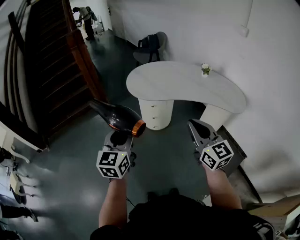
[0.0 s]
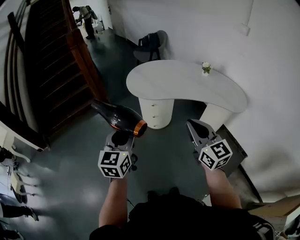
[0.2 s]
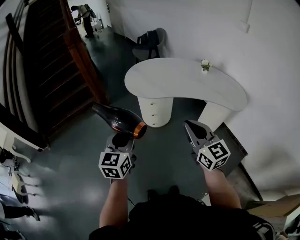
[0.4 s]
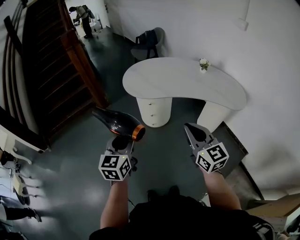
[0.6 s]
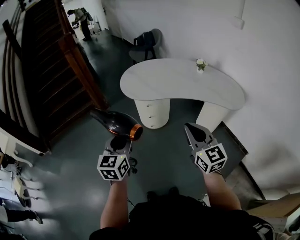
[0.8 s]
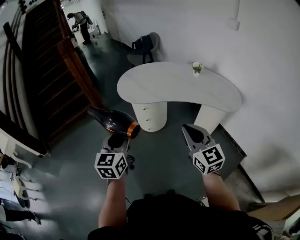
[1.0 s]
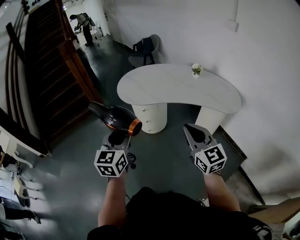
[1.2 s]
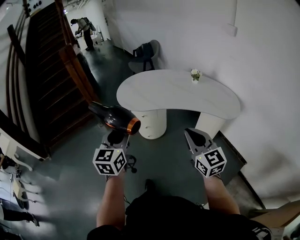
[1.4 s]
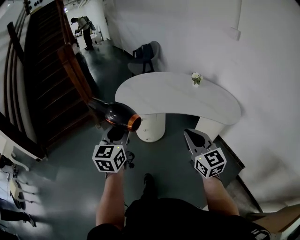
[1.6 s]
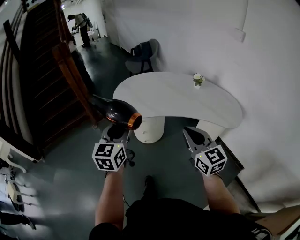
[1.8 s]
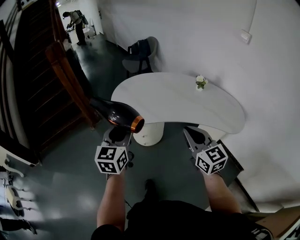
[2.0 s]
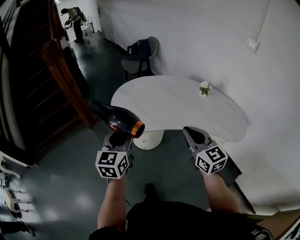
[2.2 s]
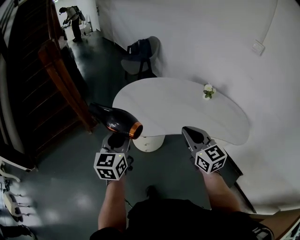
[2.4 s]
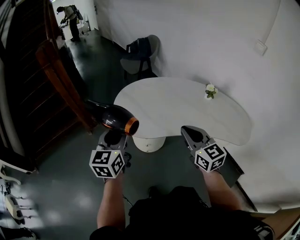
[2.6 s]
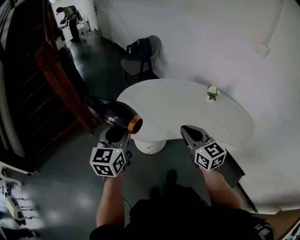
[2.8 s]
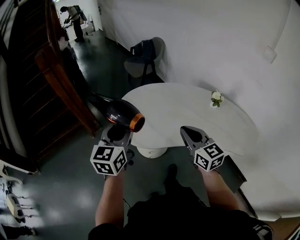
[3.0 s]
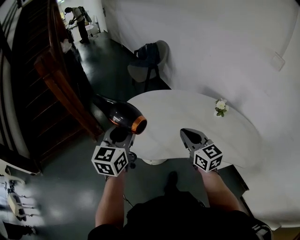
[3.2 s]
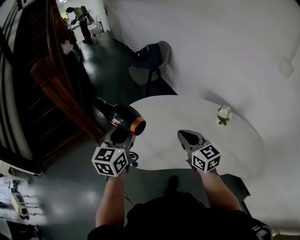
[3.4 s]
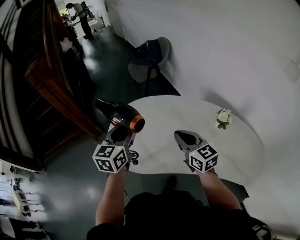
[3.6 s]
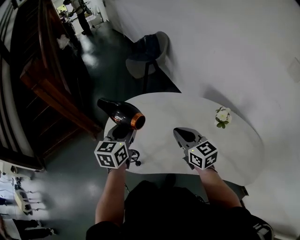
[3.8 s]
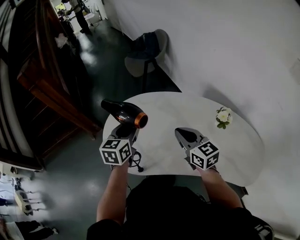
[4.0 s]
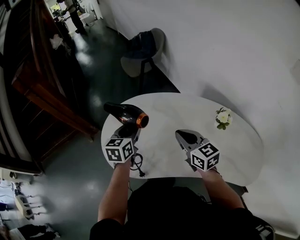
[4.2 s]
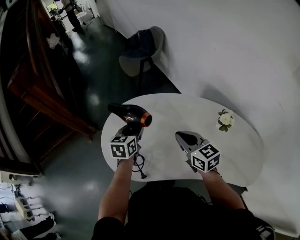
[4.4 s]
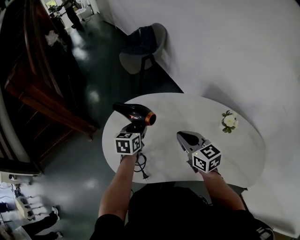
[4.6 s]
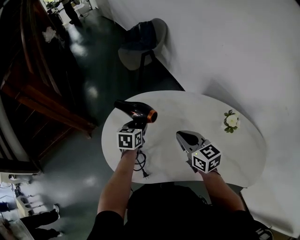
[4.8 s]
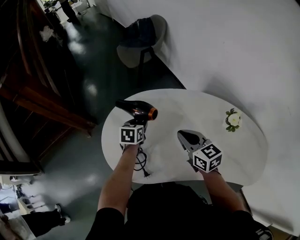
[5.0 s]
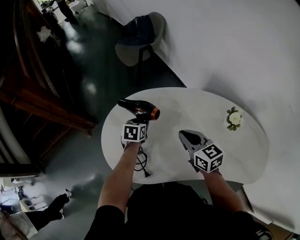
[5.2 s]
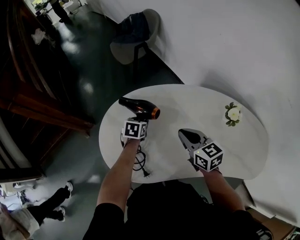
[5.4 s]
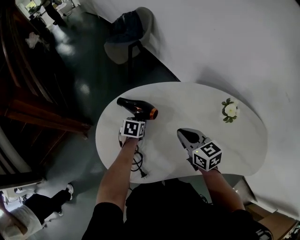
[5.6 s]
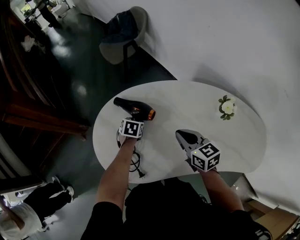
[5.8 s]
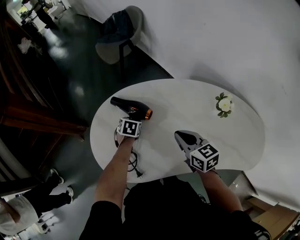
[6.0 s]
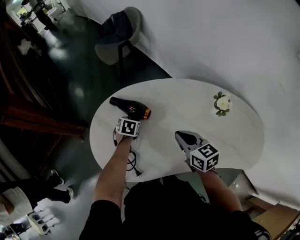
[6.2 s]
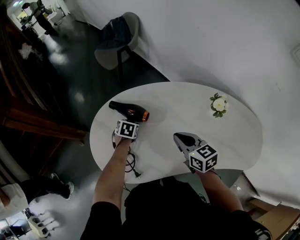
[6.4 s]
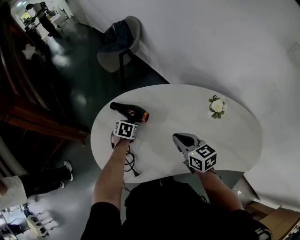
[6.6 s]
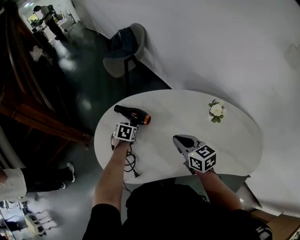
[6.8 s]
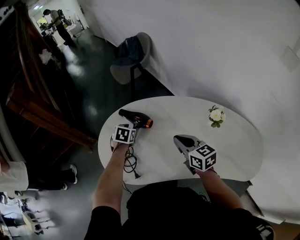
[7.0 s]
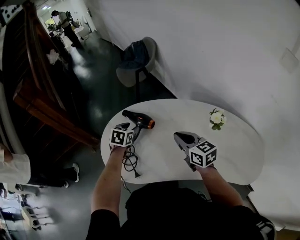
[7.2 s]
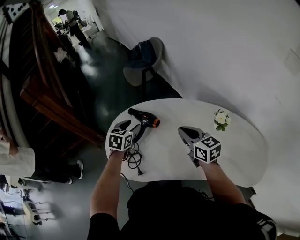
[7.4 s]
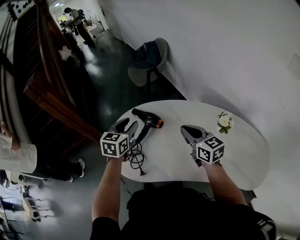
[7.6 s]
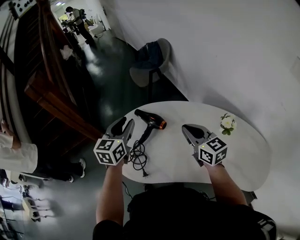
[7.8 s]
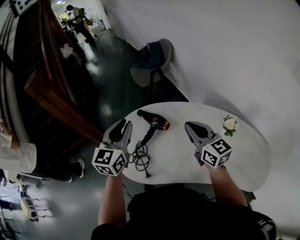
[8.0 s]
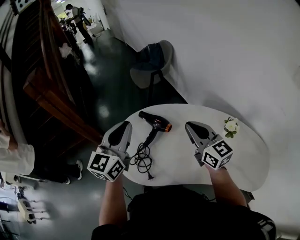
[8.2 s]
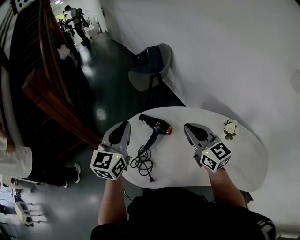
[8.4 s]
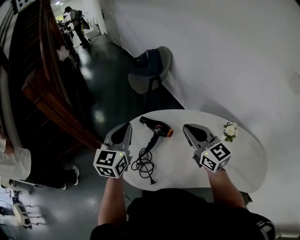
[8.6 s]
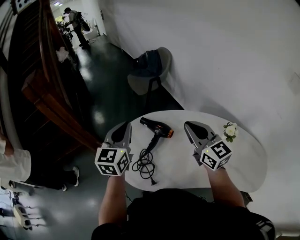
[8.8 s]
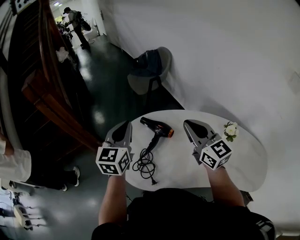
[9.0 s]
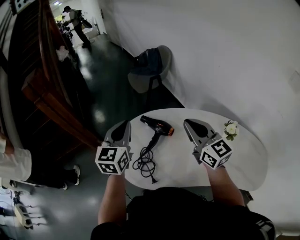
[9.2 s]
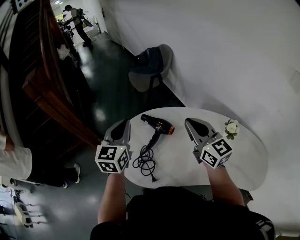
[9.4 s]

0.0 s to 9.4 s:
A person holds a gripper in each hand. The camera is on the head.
0.0 to 1.6 s: The right gripper is displaced to the right by some 10 cm, while the left gripper is displaced to the right and forward by some 15 cm.
1.6 to 3.2 s: Both grippers move forward, approximately 40 cm.
3.2 to 4.8 s: The right gripper shifts some 20 cm forward and downward. The left gripper travels downward, forward and to the right by roughly 40 cm, and angles its fingers downward, by some 30 degrees.
4.8 to 6.2 s: The left gripper is displaced downward by some 10 cm, and changes its angle by approximately 30 degrees. Meanwhile the right gripper shifts by some 5 cm.
6.2 to 7.8 s: The left gripper is displaced upward by some 35 cm, and tips its fingers upward by roughly 50 degrees; the right gripper travels upward by some 15 cm, and turns by about 20 degrees.
7.8 to 9.4 s: The left gripper travels to the left by roughly 5 cm, and closes, while the right gripper shifts approximately 10 cm upward and to the left.

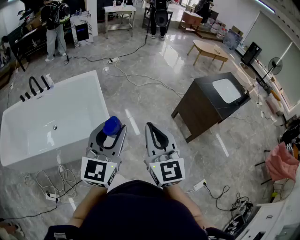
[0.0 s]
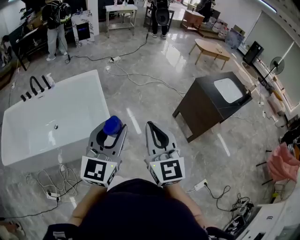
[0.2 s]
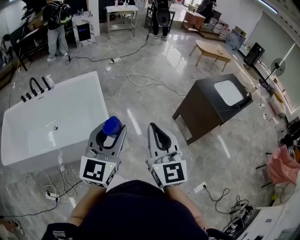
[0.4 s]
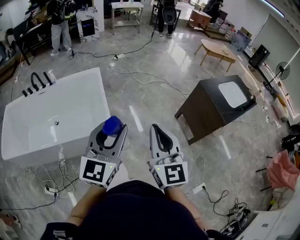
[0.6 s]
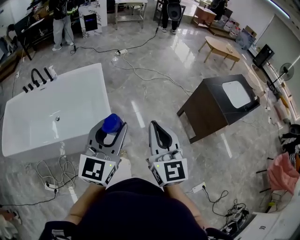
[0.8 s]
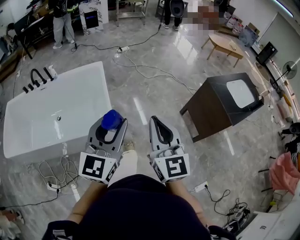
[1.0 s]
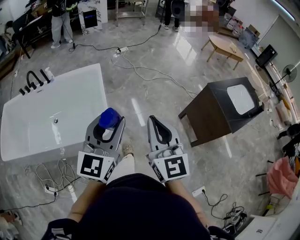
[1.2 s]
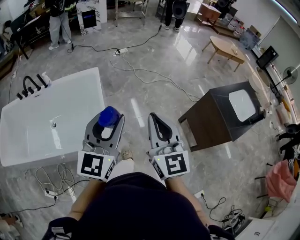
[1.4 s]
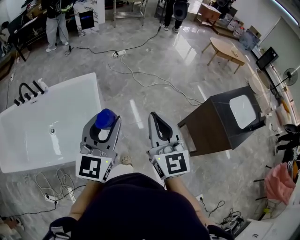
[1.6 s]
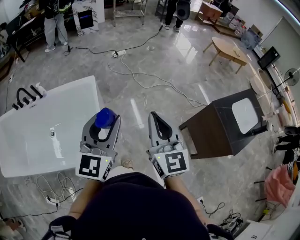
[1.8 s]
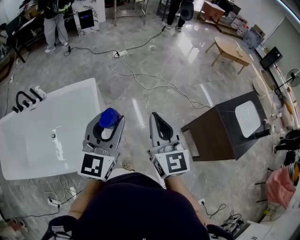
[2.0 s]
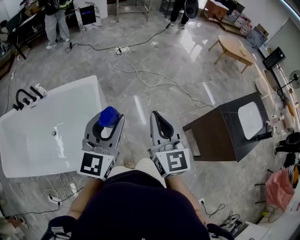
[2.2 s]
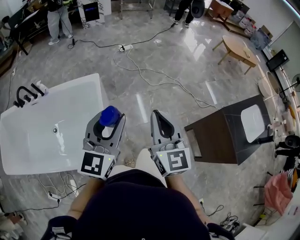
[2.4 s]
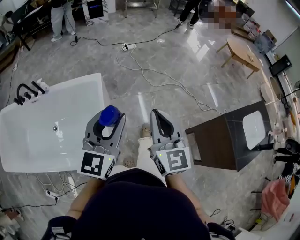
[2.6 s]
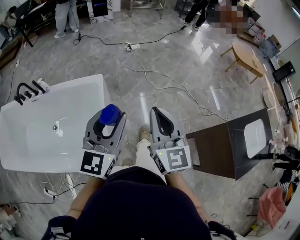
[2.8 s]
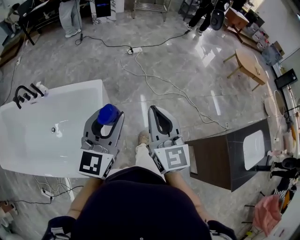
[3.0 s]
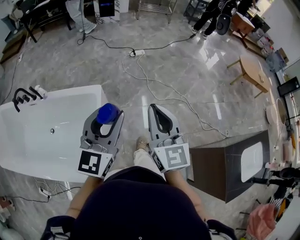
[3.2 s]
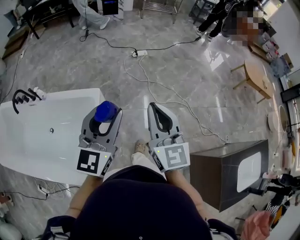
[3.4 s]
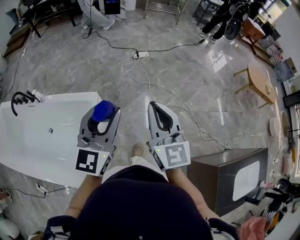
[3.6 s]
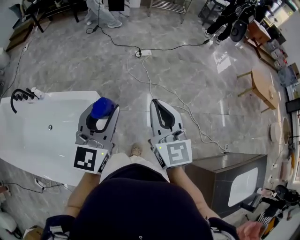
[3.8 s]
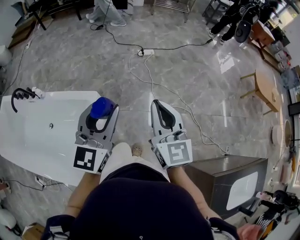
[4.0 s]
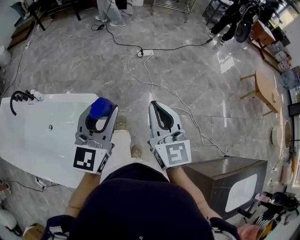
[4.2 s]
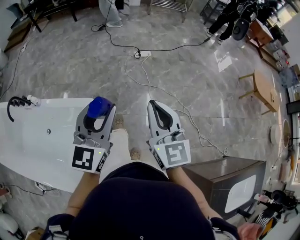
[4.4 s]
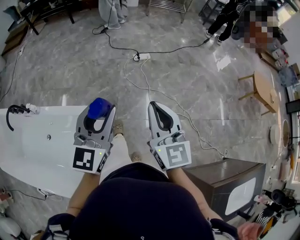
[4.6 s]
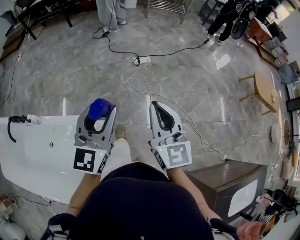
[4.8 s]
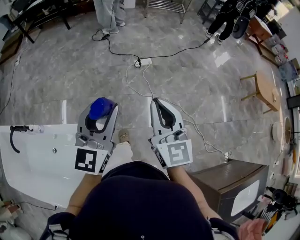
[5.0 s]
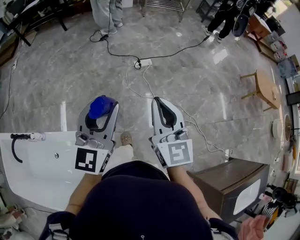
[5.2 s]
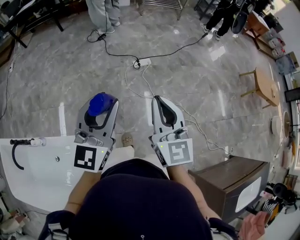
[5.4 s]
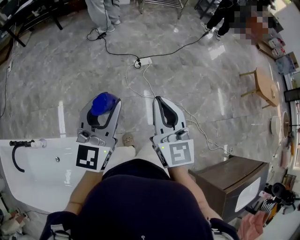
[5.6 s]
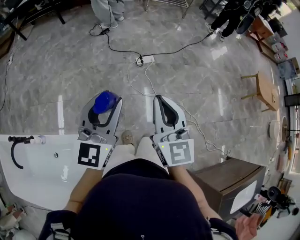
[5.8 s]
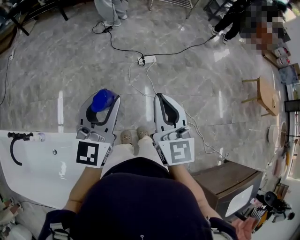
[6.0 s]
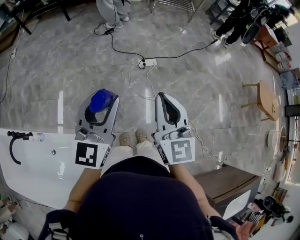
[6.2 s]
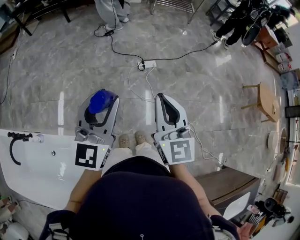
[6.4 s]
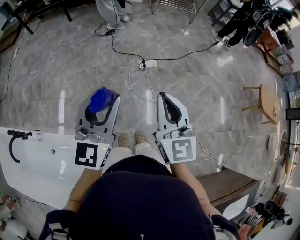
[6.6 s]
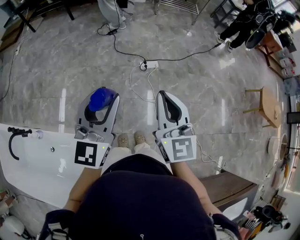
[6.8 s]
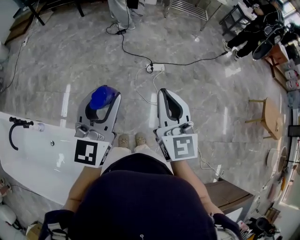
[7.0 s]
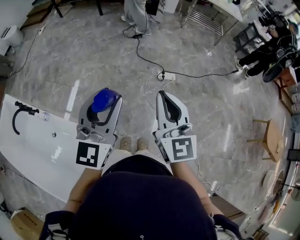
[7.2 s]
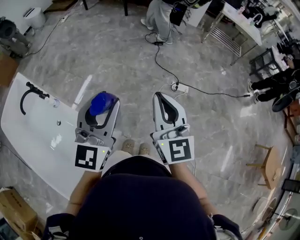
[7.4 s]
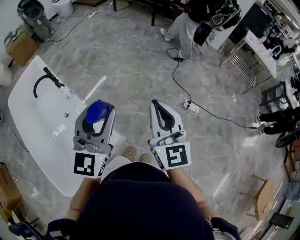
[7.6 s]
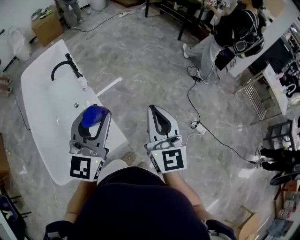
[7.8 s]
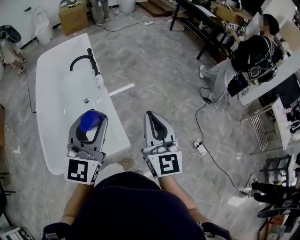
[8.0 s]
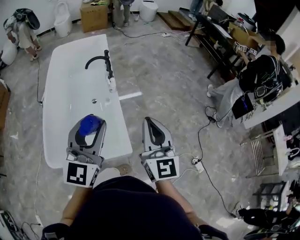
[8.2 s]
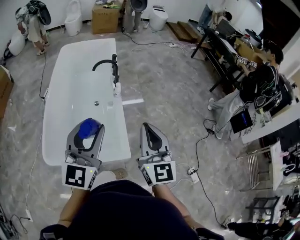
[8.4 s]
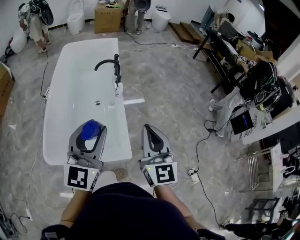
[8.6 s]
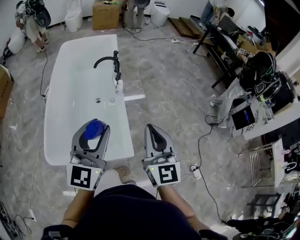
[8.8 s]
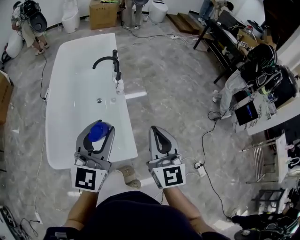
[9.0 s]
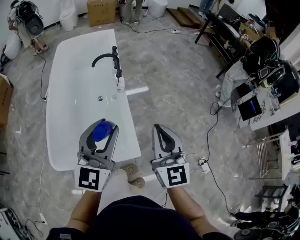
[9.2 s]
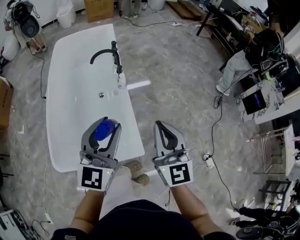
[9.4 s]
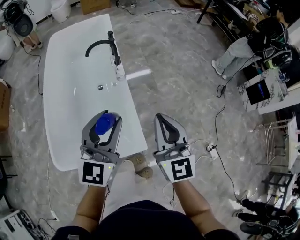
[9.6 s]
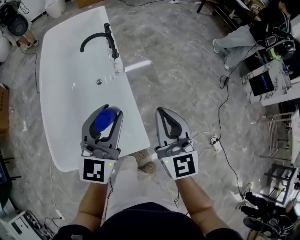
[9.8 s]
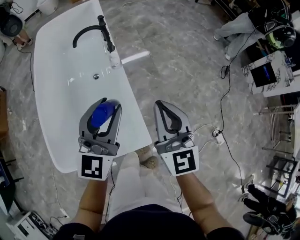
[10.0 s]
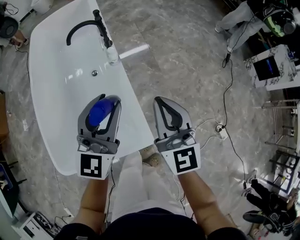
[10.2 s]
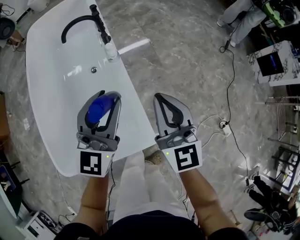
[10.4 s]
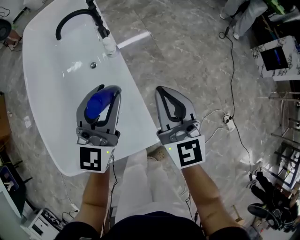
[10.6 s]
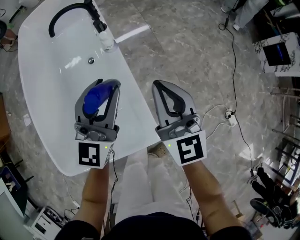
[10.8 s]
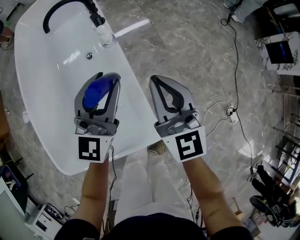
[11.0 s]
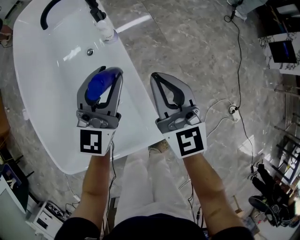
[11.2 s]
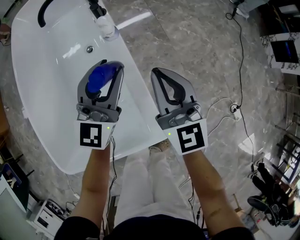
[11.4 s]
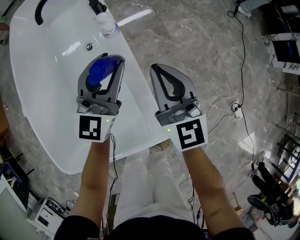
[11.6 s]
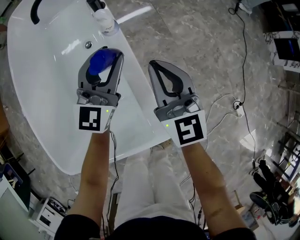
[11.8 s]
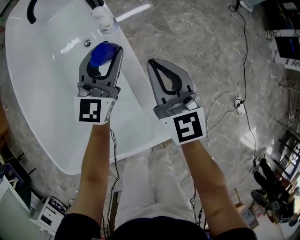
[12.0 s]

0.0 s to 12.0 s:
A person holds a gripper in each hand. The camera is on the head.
0.0 to 1.6 s: The grippers both shift forward by approximately 30 cm.
1.6 to 3.0 s: The grippers both shift forward by some 25 cm.
3.0 to 4.4 s: The two grippers go some 30 cm forward.
4.4 to 6.0 s: The grippers both shift forward and to the left by some 35 cm.
6.0 to 7.6 s: The left gripper changes place by roughly 15 cm, and swivels approximately 40 degrees. Meanwhile the right gripper shifts by about 15 cm, and rotates roughly 40 degrees.
7.6 to 9.0 s: The left gripper changes place by about 25 cm, and rotates some 40 degrees; the right gripper ends up about 25 cm from where it was, and changes its angle by about 40 degrees.
9.0 to 10.4 s: The right gripper shifts some 25 cm downward and forward. Meanwhile the left gripper travels forward and downward by some 25 cm.
10.4 to 12.0 s: Both grippers travel together downward and forward, roughly 20 cm.

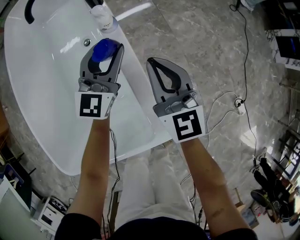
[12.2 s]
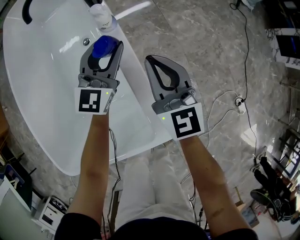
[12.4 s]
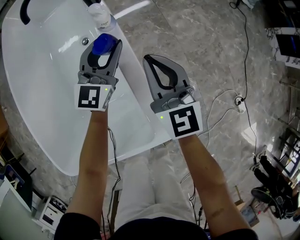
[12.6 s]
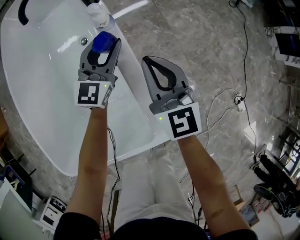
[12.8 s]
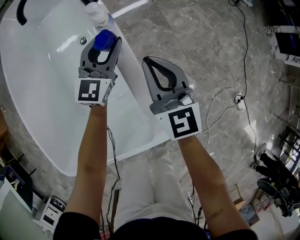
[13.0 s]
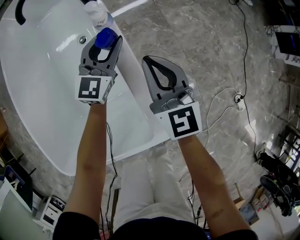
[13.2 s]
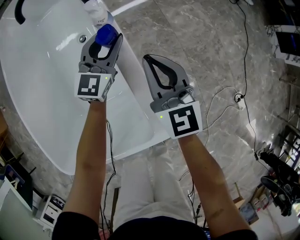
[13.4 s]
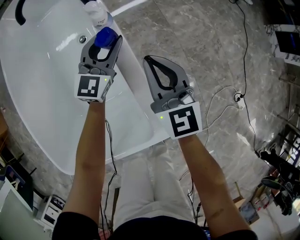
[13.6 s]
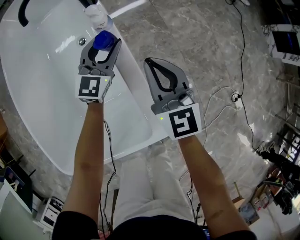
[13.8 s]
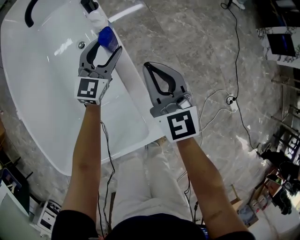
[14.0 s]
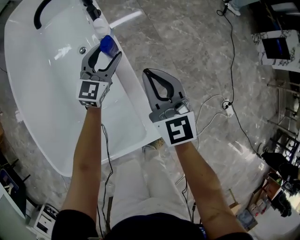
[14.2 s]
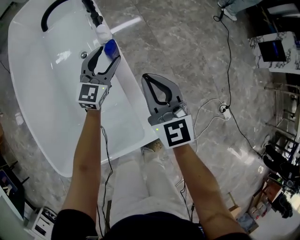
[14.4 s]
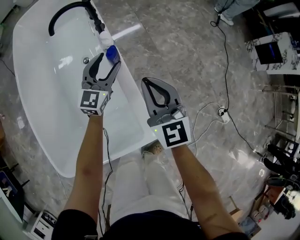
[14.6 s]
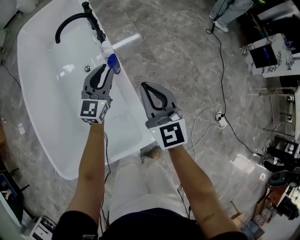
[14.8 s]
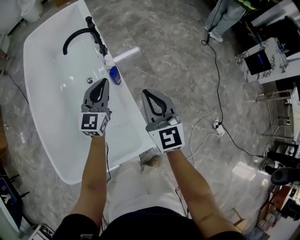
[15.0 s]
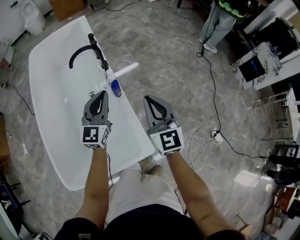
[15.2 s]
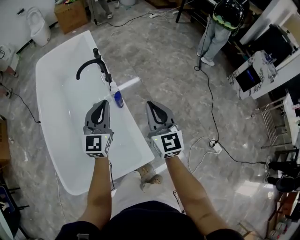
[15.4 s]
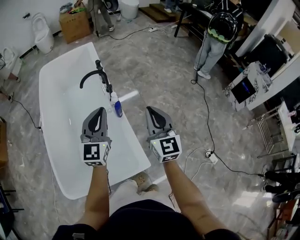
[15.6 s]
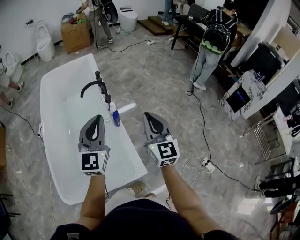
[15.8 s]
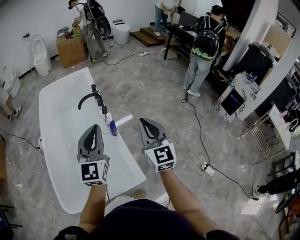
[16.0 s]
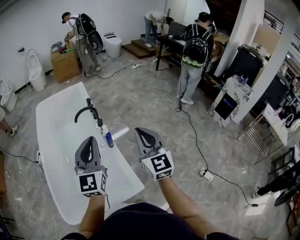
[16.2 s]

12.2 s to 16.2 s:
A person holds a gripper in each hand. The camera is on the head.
12.2 to 13.6 s: The left gripper goes approximately 5 cm downward.
13.6 to 14.8 s: The left gripper shifts some 15 cm upward and backward, and opens, then closes once more, while the right gripper travels upward by some 15 cm.
14.8 to 16.2 s: The left gripper heads upward and backward, covering approximately 40 cm, turns by some 20 degrees, and closes. The right gripper travels upward by about 25 cm.
